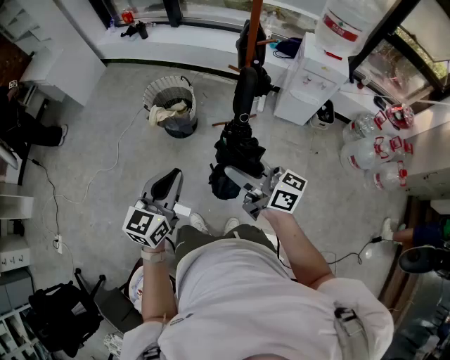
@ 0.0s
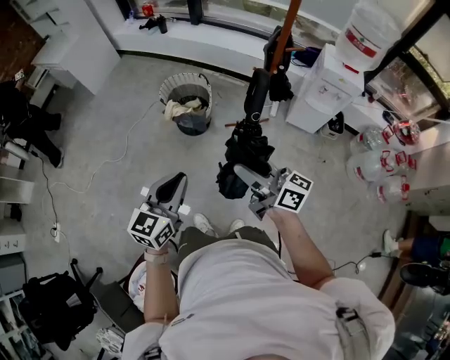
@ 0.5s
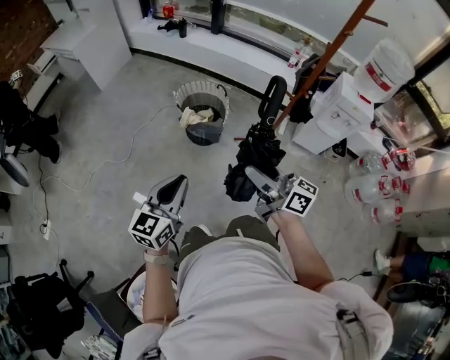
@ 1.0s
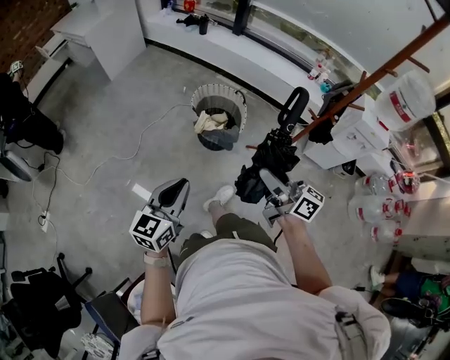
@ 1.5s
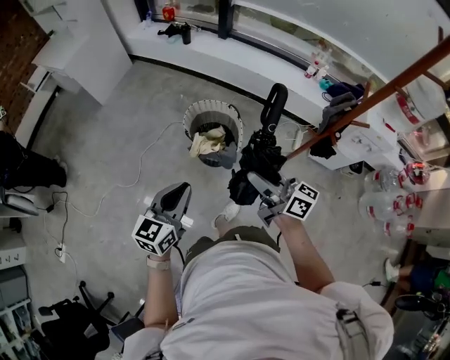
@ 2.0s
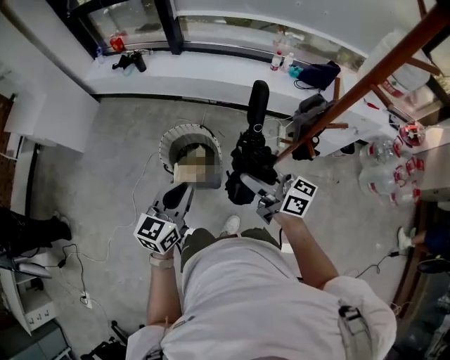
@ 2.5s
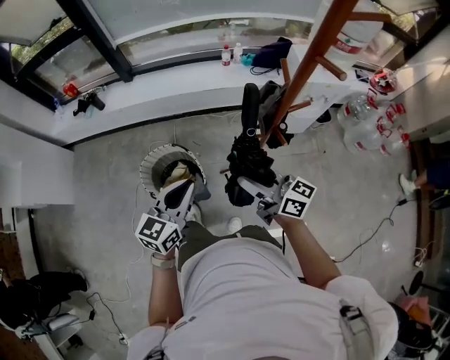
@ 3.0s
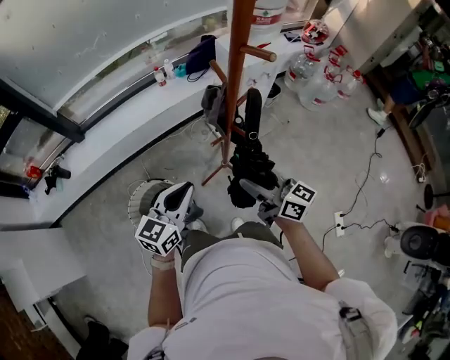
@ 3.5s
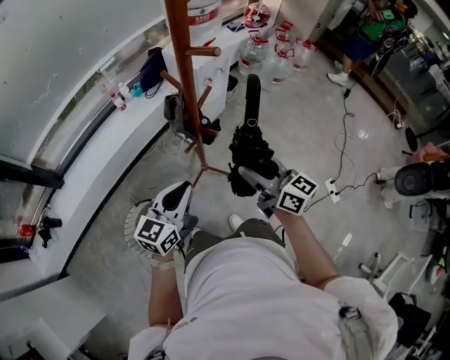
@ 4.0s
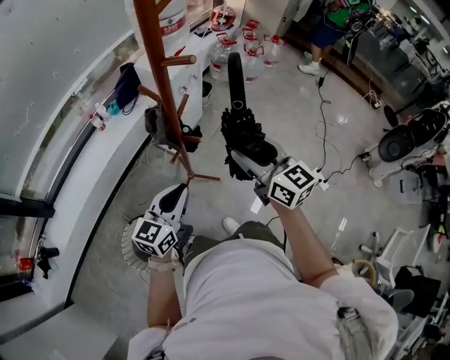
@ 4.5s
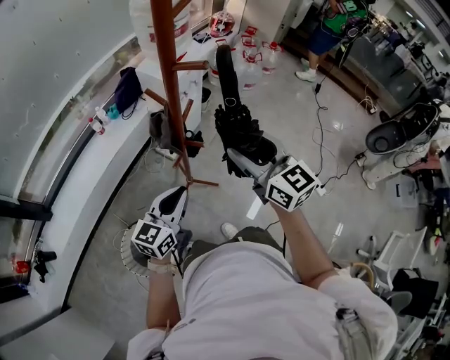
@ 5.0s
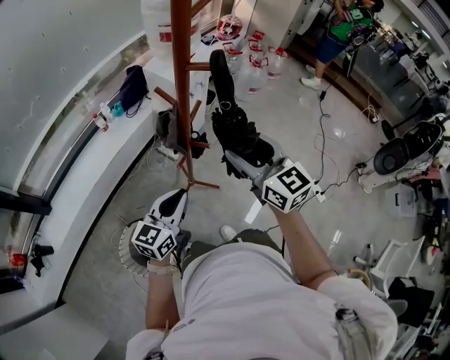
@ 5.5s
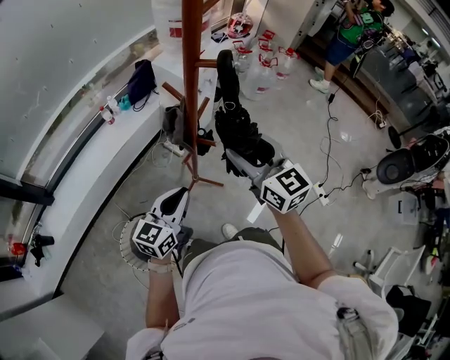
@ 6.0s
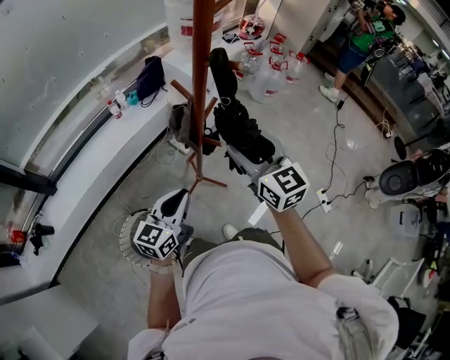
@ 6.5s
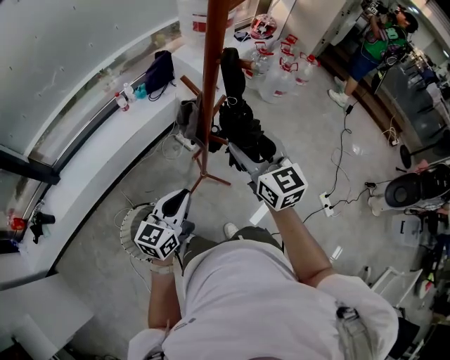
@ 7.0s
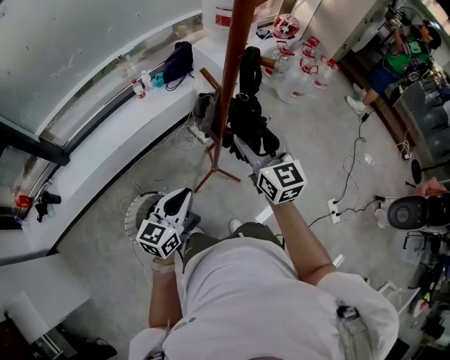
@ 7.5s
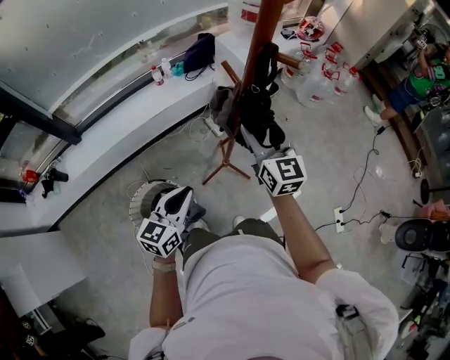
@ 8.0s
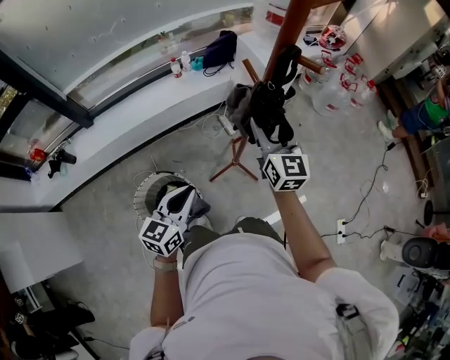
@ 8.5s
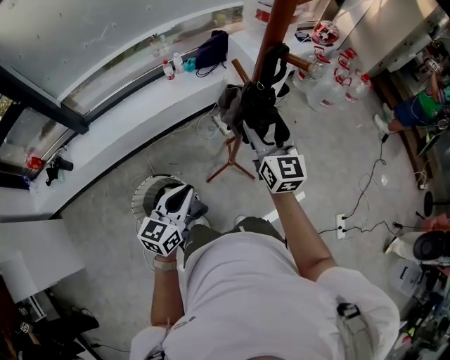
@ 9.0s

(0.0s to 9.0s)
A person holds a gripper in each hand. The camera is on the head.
0.0s - 2.0s: Both grippers move forward and to the left, approximately 35 cm.
2.0s - 4.5s: The left gripper moves roughly 40 cm, and rotates some 80 degrees, while the right gripper moves some 30 cm, and rotates about 90 degrees.
4.5s - 7.0s: The left gripper ends up approximately 5 cm from where it was, while the right gripper is displaced to the left by about 5 cm.
7.0s - 9.0s: The right gripper travels forward by approximately 5 cm, while the left gripper changes place by some 5 cm.

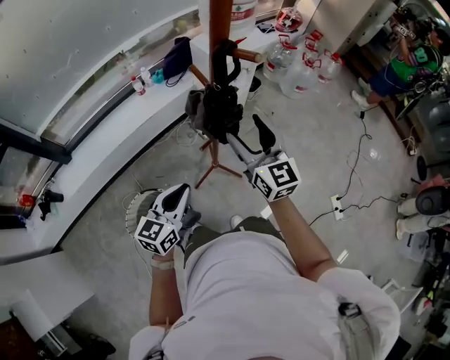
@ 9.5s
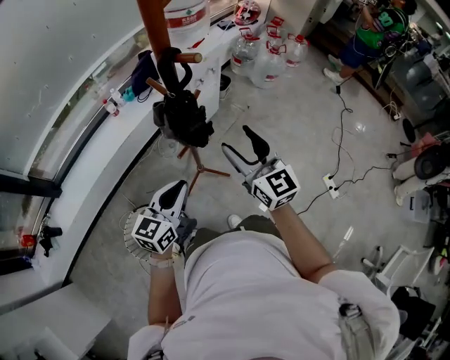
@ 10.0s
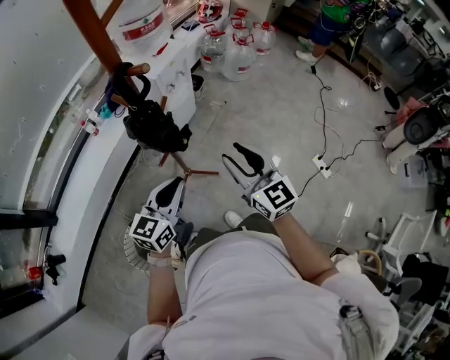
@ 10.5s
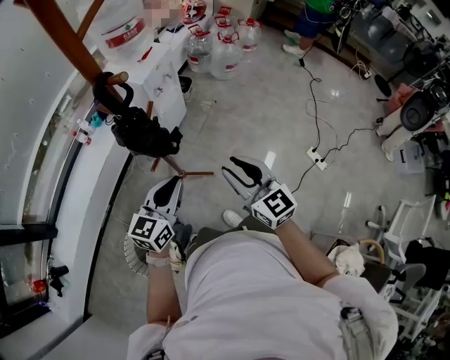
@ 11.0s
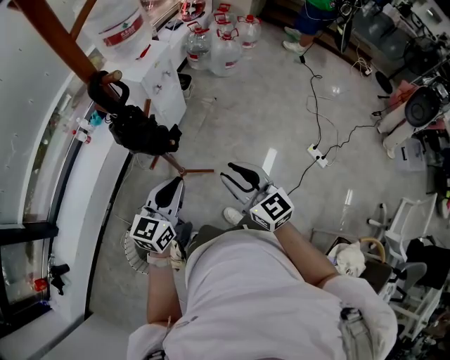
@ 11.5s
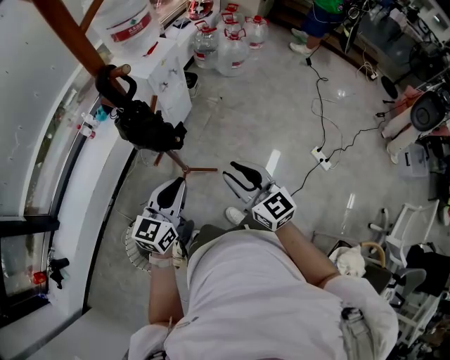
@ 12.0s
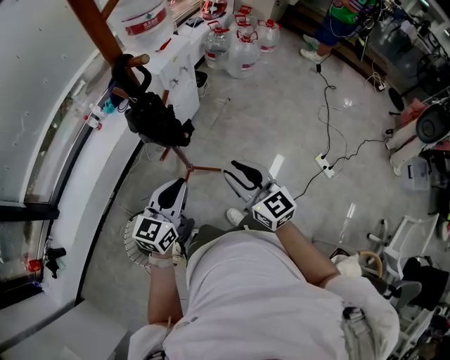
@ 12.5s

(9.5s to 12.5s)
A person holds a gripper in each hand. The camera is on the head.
9.5s - 11.0s: The right gripper is displaced to the right and backward by about 15 cm, and closes its fingers, while the left gripper goes roughly 15 cm to the right and forward, and rotates about 20 degrees.
11.0s - 12.5s: The grippers stay close to where they were, moving slightly.

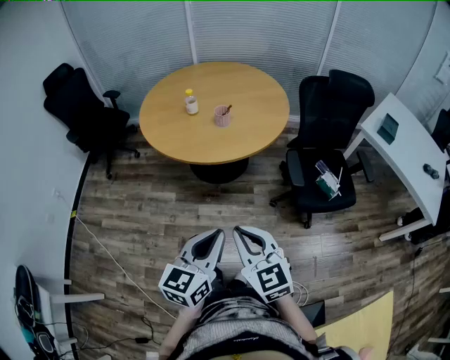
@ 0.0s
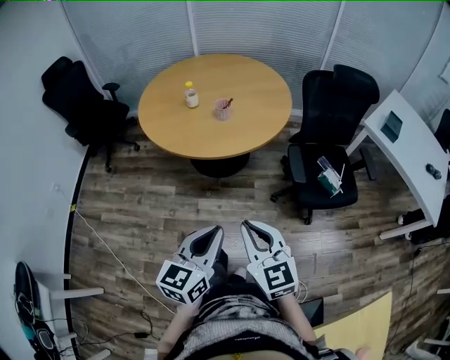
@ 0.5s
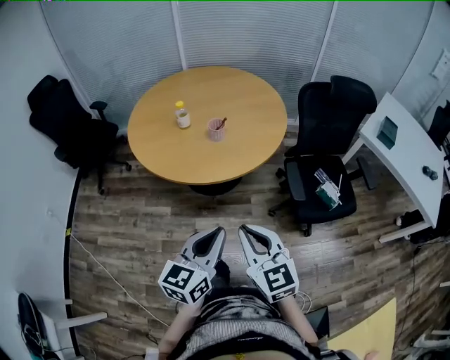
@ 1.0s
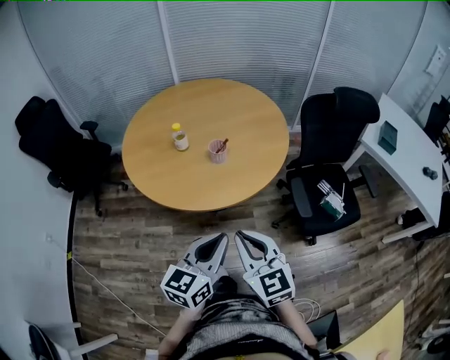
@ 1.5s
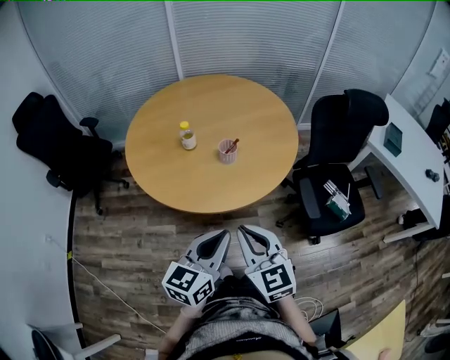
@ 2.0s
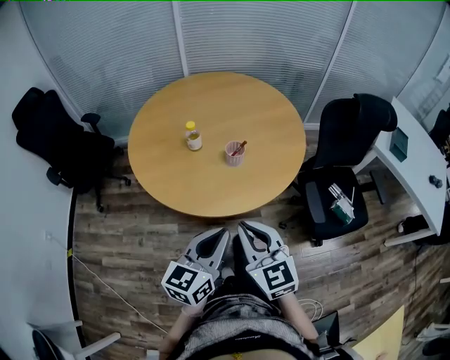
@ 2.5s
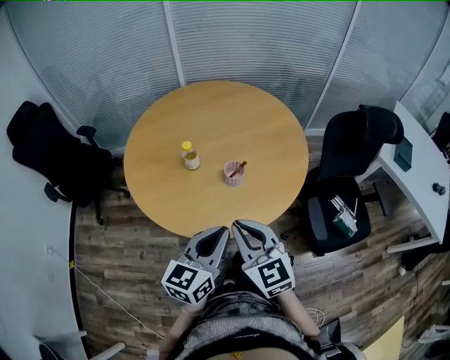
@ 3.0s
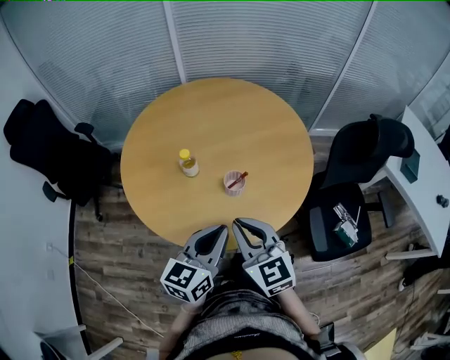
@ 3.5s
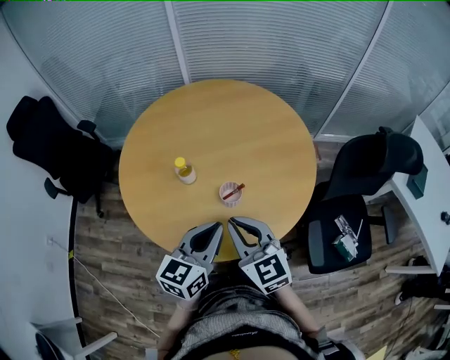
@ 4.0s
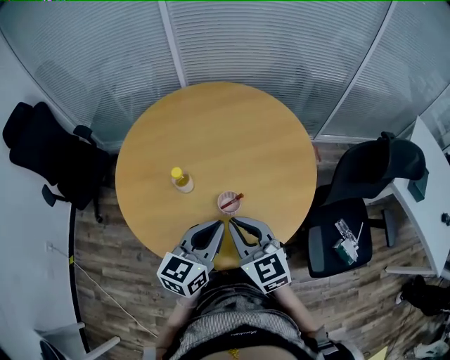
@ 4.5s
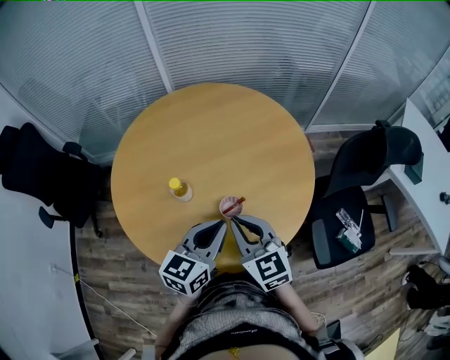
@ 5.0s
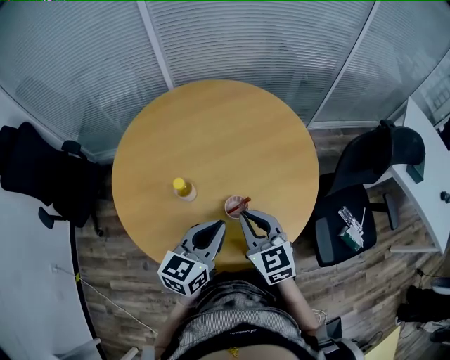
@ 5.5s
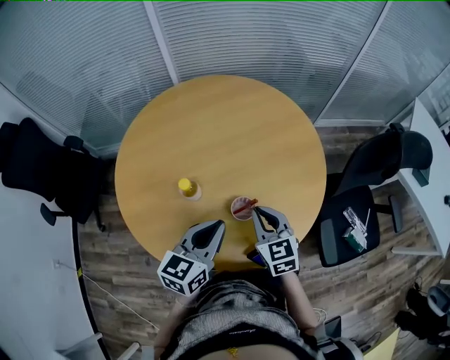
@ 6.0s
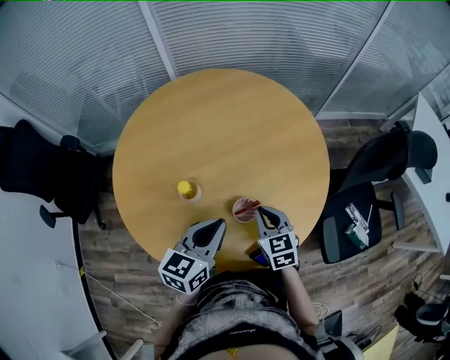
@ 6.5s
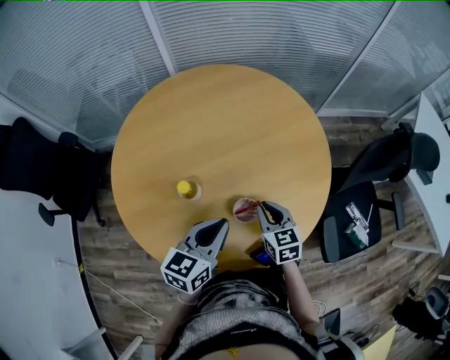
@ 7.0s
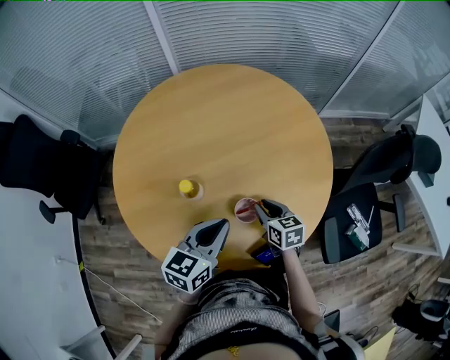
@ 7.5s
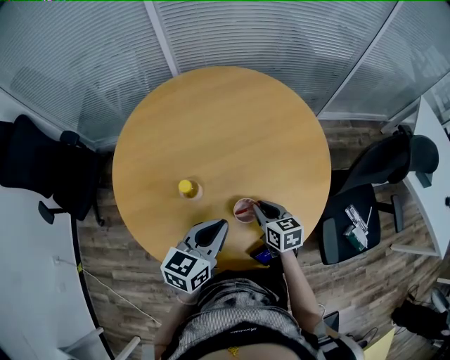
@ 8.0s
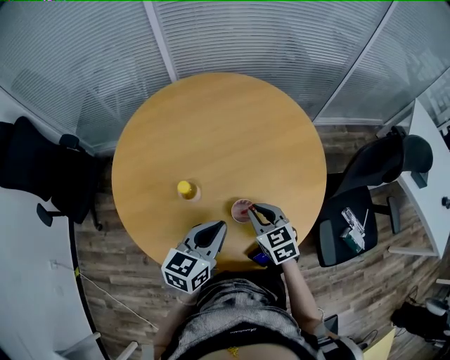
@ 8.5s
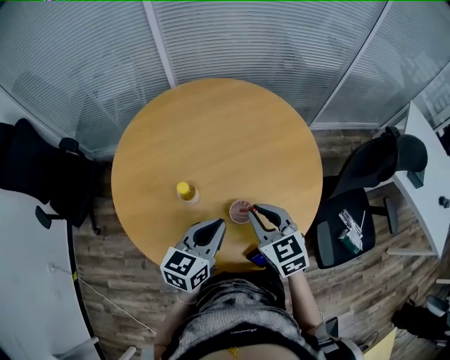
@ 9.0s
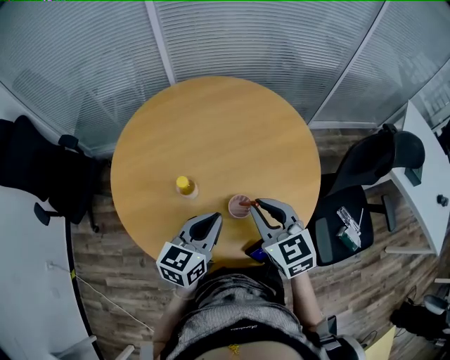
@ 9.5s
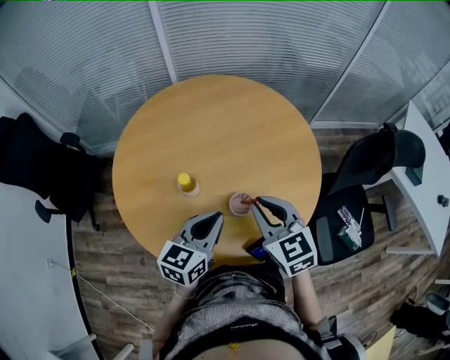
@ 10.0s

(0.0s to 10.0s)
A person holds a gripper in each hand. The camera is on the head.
0.0s - 2.0s: Both grippers travel together forward, about 25 cm.
2.0s - 4.0s: Both grippers move forward, about 25 cm.
4.0s - 6.0s: The left gripper travels forward and to the left by about 10 cm. The right gripper is displaced forward and downward by some 15 cm, and swivels some 20 degrees.
6.0s - 8.0s: The right gripper shifts some 10 cm downward, and changes its angle by approximately 20 degrees.
8.0s - 10.0s: The right gripper travels upward by roughly 20 cm, and rotates some 30 degrees.

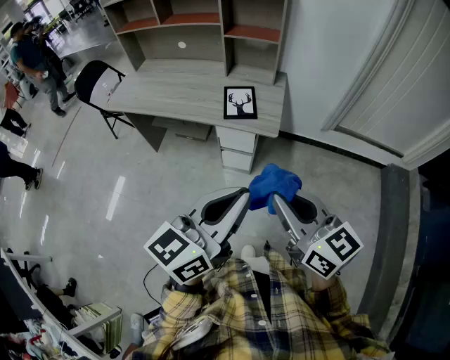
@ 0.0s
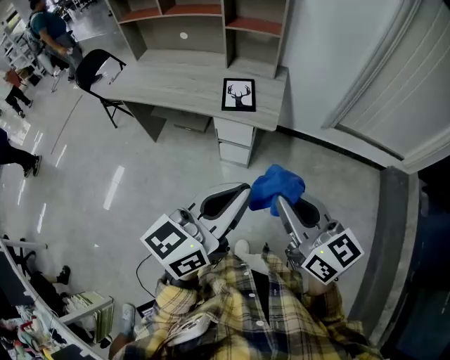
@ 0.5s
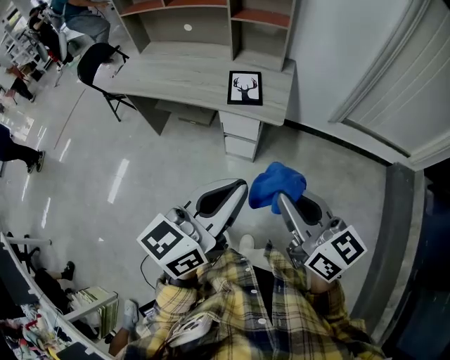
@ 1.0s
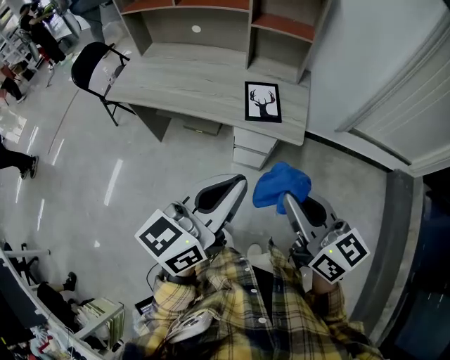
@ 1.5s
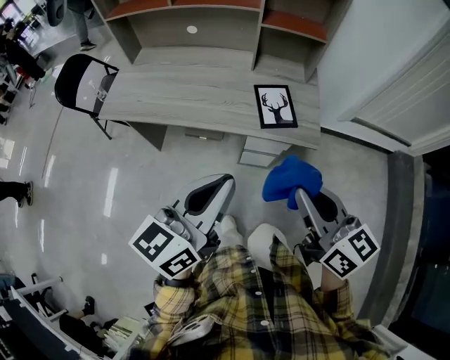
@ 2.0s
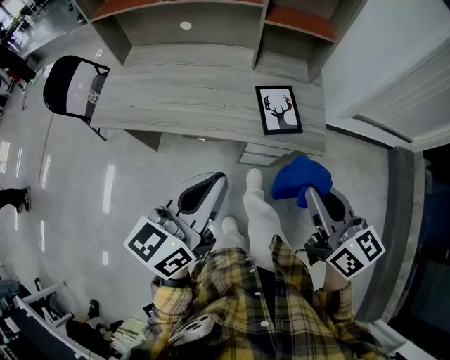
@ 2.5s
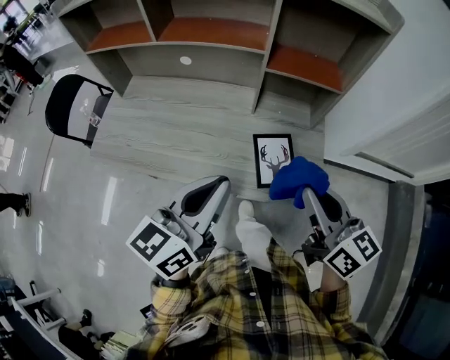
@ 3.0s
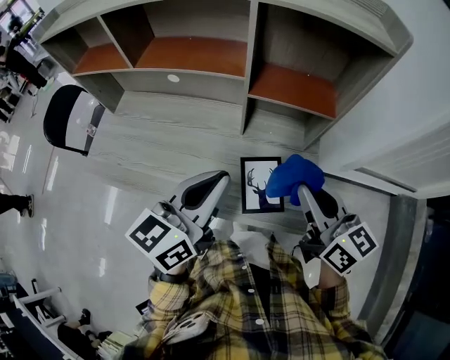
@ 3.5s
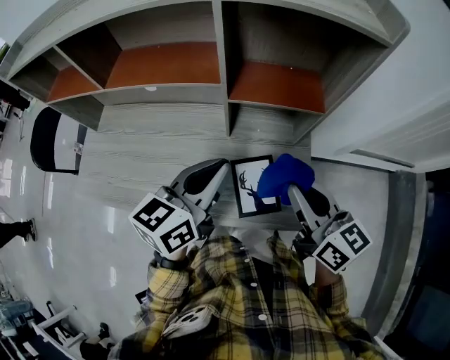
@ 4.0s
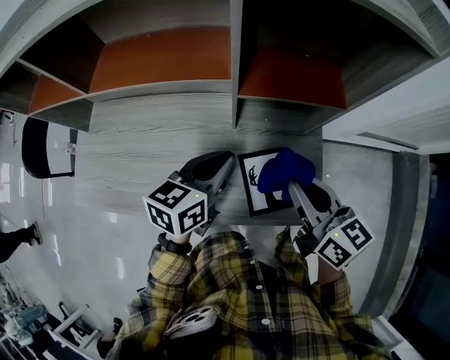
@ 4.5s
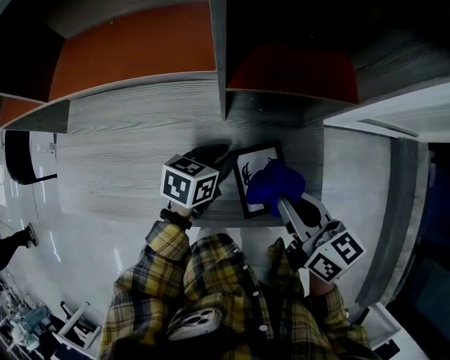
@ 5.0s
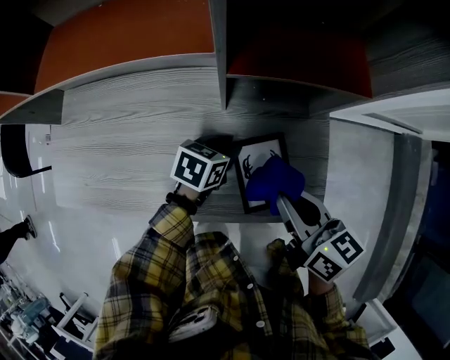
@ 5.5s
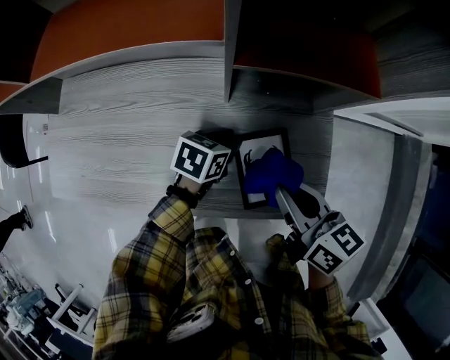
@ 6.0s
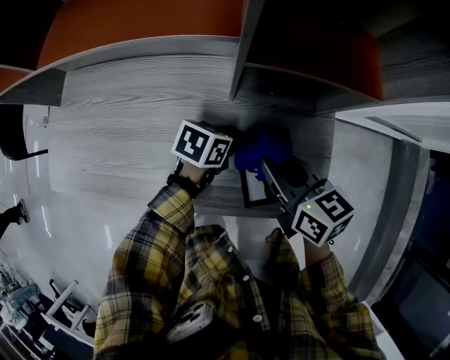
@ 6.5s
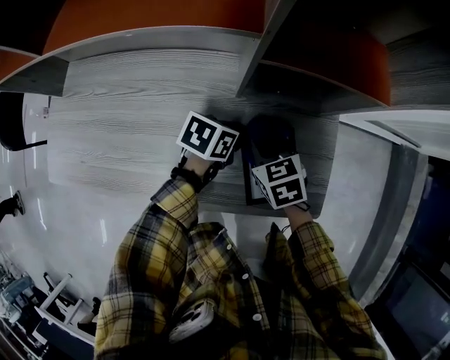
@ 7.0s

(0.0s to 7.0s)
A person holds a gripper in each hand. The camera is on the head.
0.0s - 2.0s: The two grippers go roughly 25 cm to the left and forward.
2.0s - 3.5s: The grippers both shift forward by roughly 35 cm.
3.5s - 5.0s: The right gripper goes approximately 15 cm downward, and swivels approximately 20 degrees. Meanwhile the left gripper shifts some 30 cm downward and forward, points its fingers approximately 30 degrees further downward, and opens.
5.0s - 7.0s: The right gripper travels downward and to the left by some 20 cm, and rotates approximately 40 degrees. The left gripper shifts approximately 5 cm downward.
